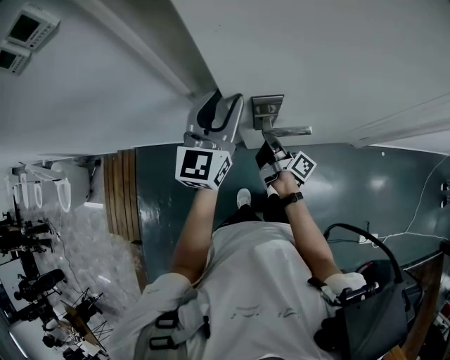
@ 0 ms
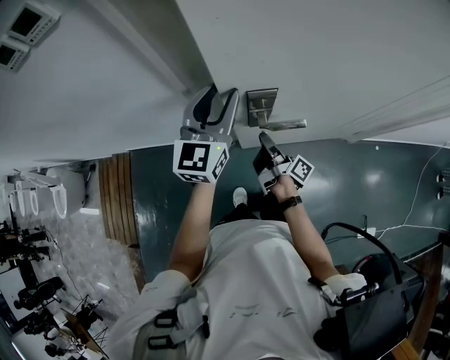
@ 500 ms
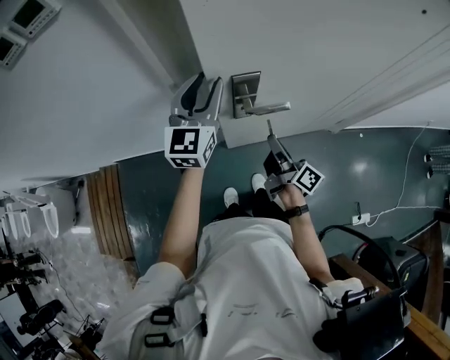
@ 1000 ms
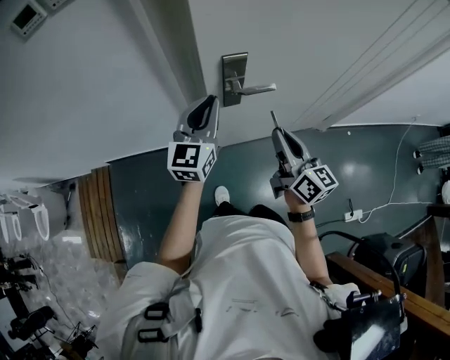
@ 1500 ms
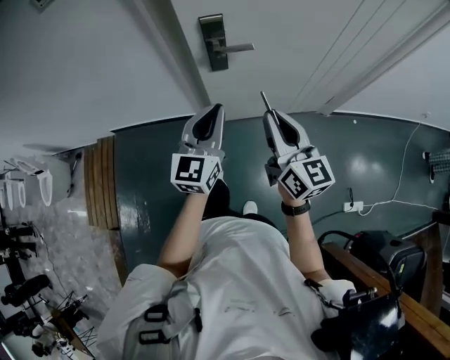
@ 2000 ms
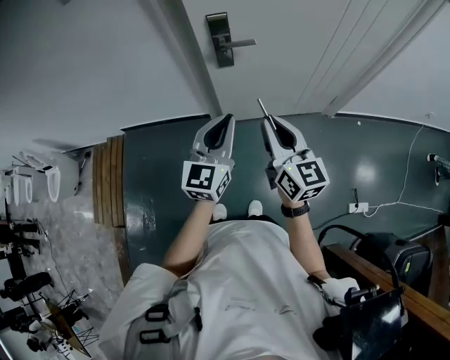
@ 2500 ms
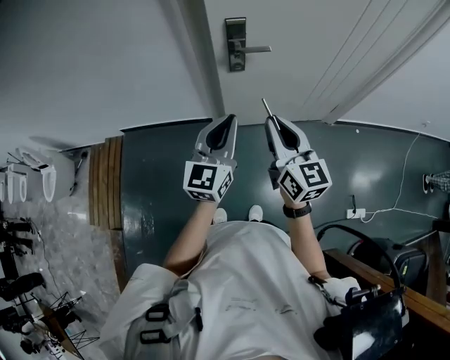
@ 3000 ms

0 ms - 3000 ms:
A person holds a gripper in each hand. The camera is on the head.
0 ms - 1500 ms: The right gripper heads upward and backward, covering about 25 cm, and twists some 60 degrees counterclockwise, seen from behind. The left gripper goes about 10 cm backward, and closes its fingers.
1500 ms - 3000 ms: The grippers both shift backward by roughly 20 cm.

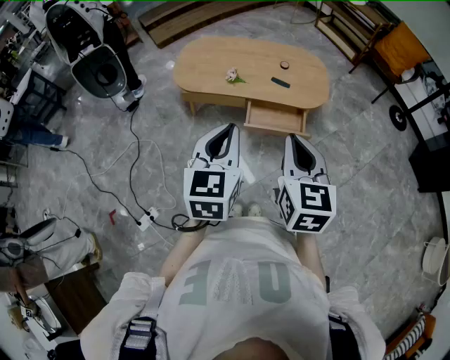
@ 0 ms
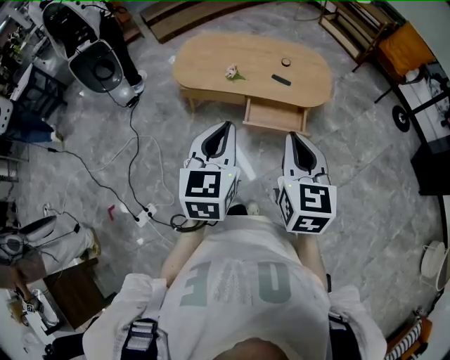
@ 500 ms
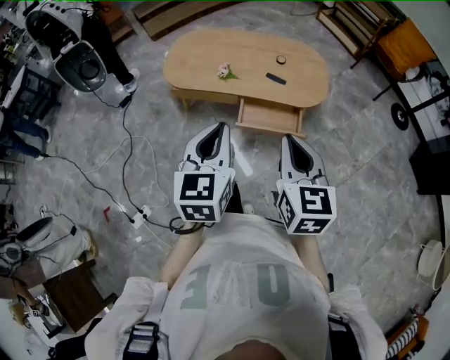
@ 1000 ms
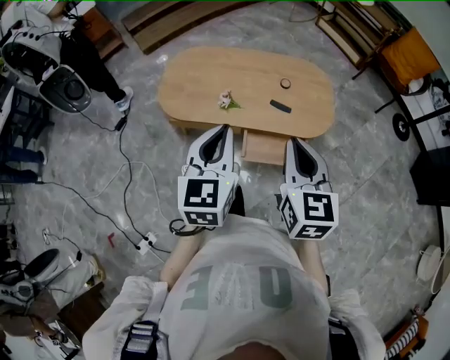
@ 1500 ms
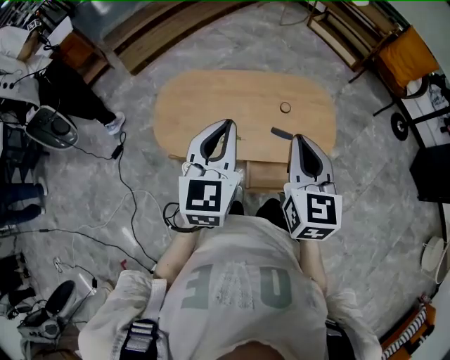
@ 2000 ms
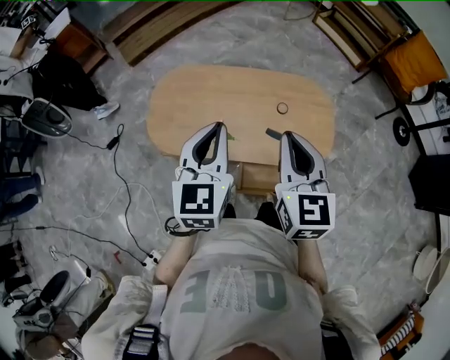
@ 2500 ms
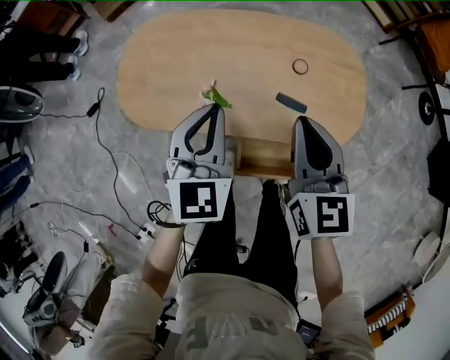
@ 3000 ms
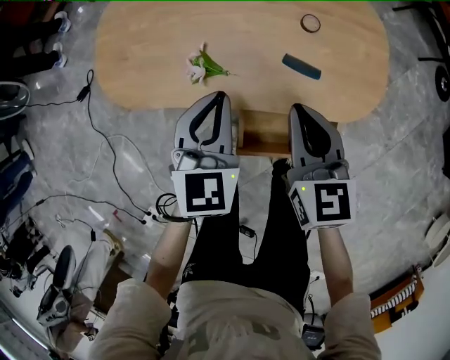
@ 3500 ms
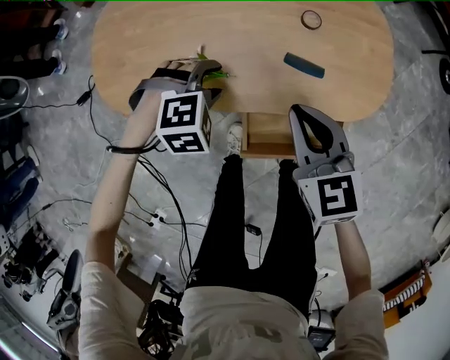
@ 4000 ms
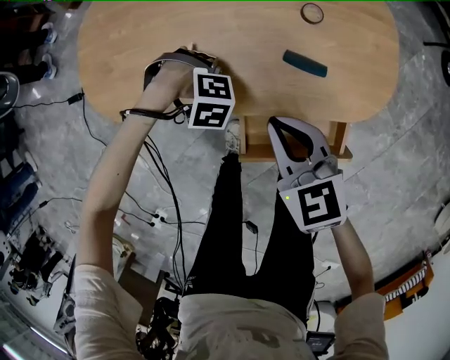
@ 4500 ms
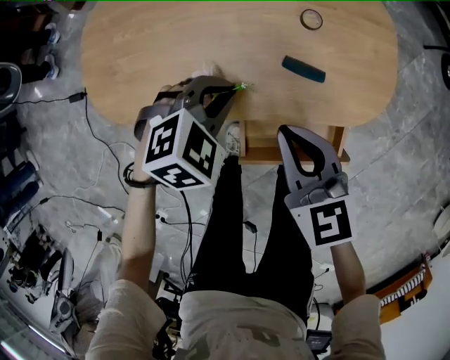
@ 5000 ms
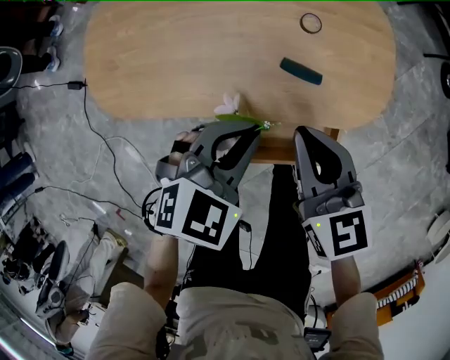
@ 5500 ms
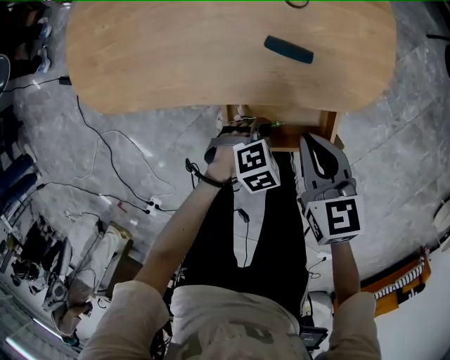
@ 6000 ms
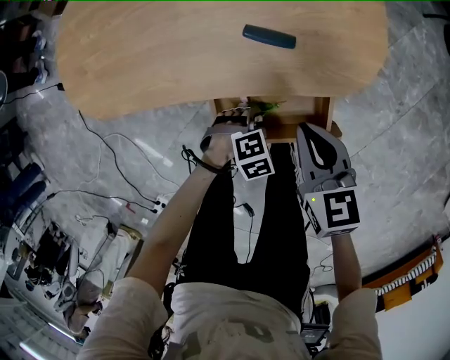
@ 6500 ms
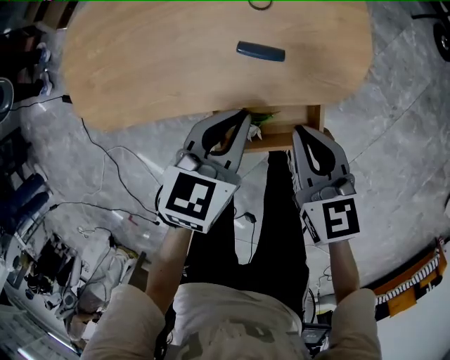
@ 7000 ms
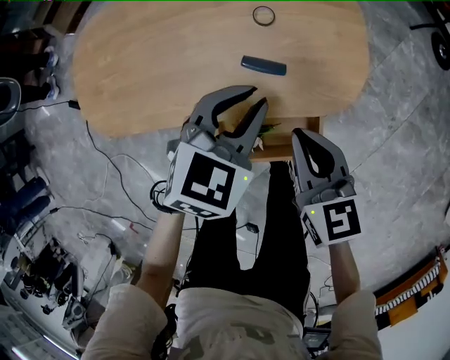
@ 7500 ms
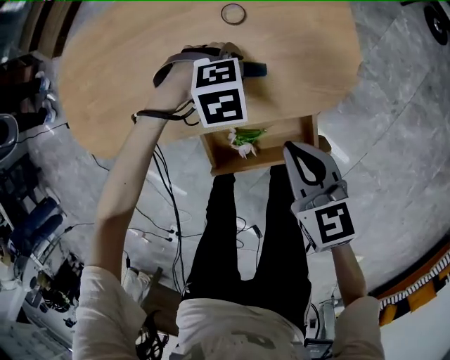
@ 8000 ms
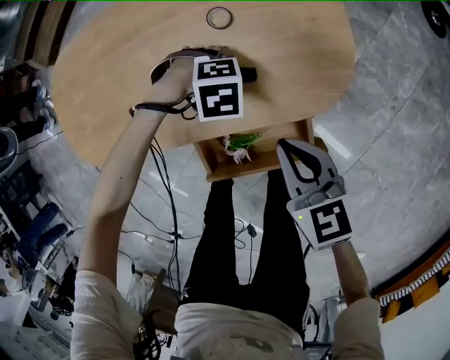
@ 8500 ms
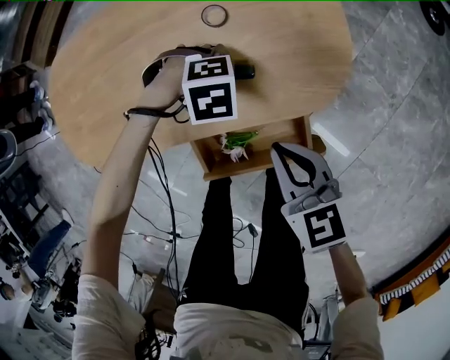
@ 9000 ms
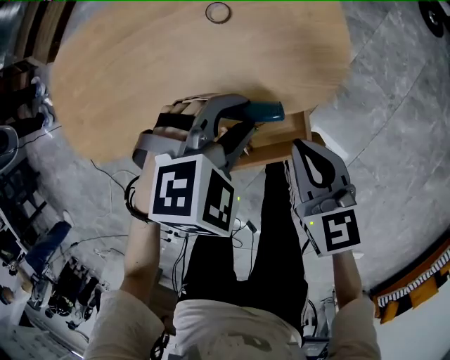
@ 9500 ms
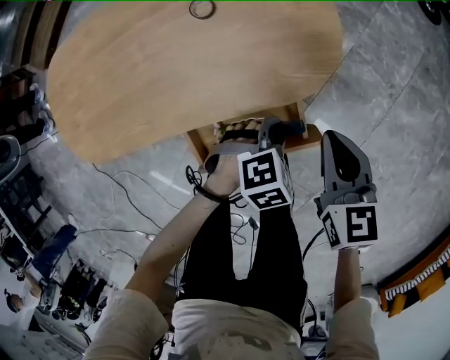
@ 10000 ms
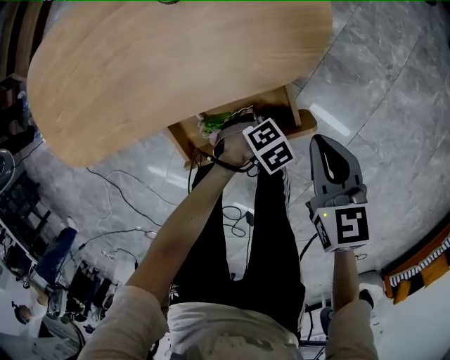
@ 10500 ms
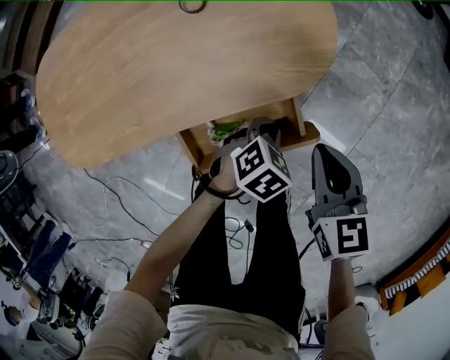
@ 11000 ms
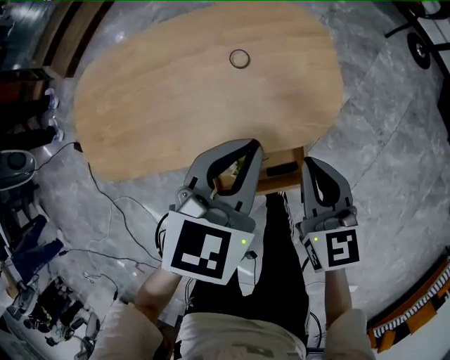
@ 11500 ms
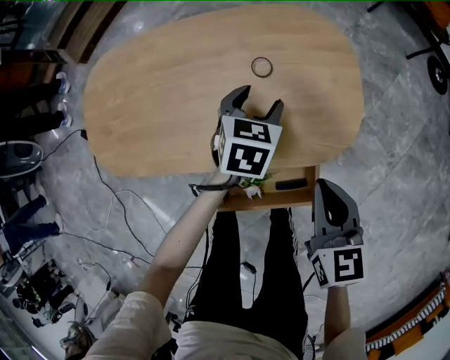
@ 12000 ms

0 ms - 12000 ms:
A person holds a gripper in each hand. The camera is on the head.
0 ms - 2000 ms: The two grippers travel together, forward, some 40 cm.
2000 ms - 4000 ms: The two grippers go roughly 40 cm downward. The left gripper angles its fingers downward, by roughly 60 degrees, and opens. Meanwhile the right gripper rotates some 30 degrees.
4000 ms - 6000 ms: The right gripper moves up and down over approximately 10 cm, changing direction 2 times. The left gripper goes up and down, approximately 25 cm each way, reversing 2 times, turns by approximately 30 degrees, and closes up.
6000 ms - 8000 ms: The left gripper moves up and down over roughly 25 cm, changing direction 2 times, changes its angle by roughly 30 degrees, and opens up; the right gripper goes upward and returns, approximately 5 cm each way.
8000 ms - 10000 ms: The left gripper moves up and down over roughly 15 cm, changing direction 2 times, while the right gripper changes place by about 10 cm.
10000 ms - 12000 ms: The left gripper moves up and down over about 40 cm, changing direction 2 times, swivels approximately 60 degrees, and opens its fingers. The right gripper changes place by some 10 cm.

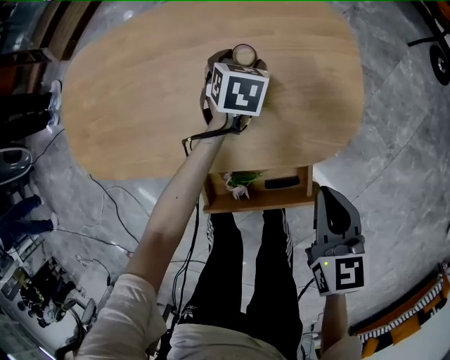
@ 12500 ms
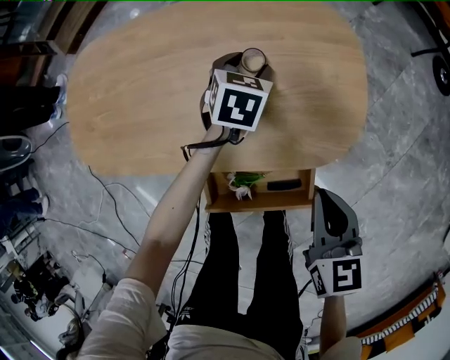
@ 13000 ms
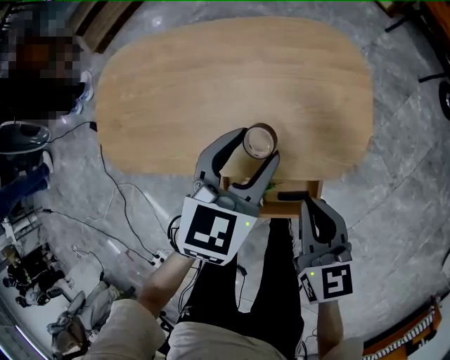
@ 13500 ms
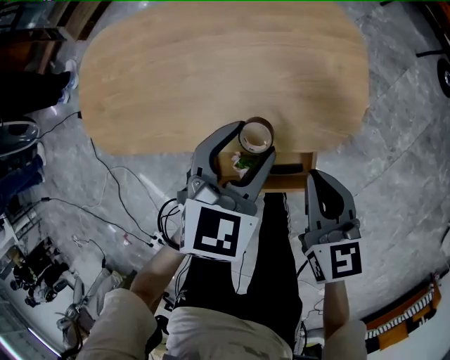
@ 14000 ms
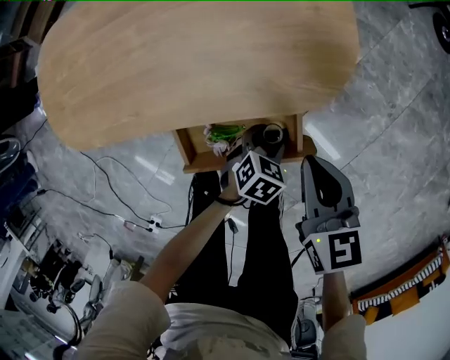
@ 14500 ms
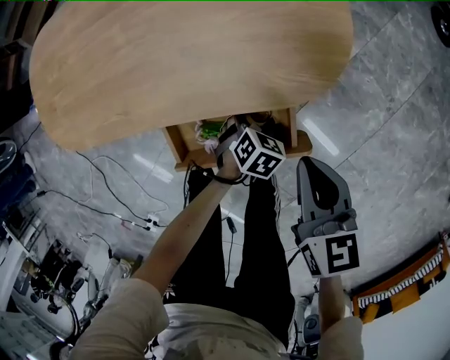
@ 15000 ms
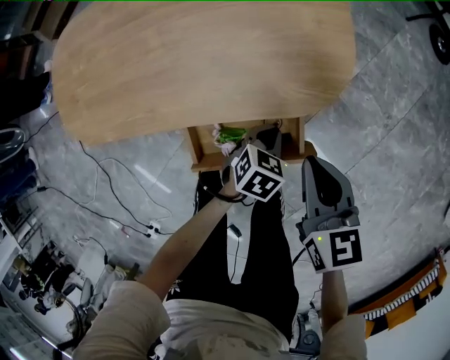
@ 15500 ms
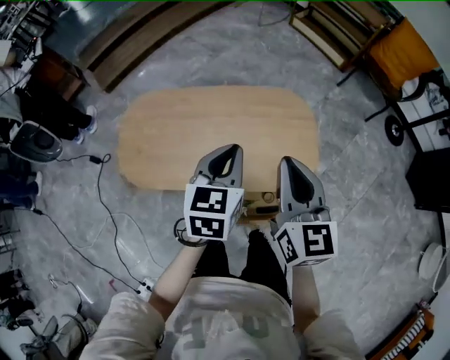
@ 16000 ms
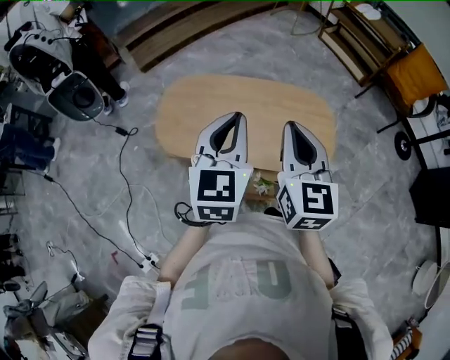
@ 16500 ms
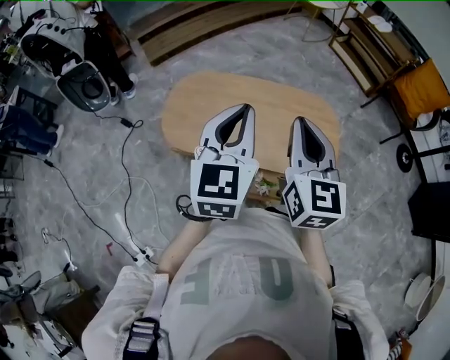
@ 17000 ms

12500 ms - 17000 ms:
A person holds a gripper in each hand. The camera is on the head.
12500 ms - 14500 ms: The left gripper goes some 35 cm backward, and turns by some 30 degrees. The right gripper reaches about 5 cm to the left, then returns.
14500 ms - 17000 ms: The grippers both shift upward by about 60 cm. The left gripper points its fingers some 50 degrees further upward, and closes, while the right gripper angles its fingers upward, by approximately 30 degrees.

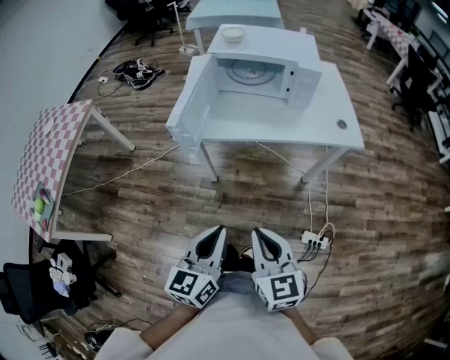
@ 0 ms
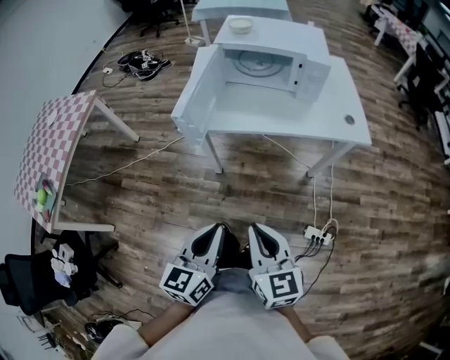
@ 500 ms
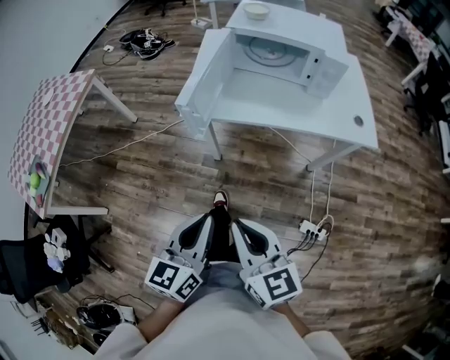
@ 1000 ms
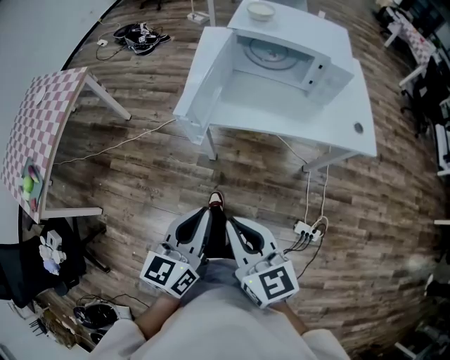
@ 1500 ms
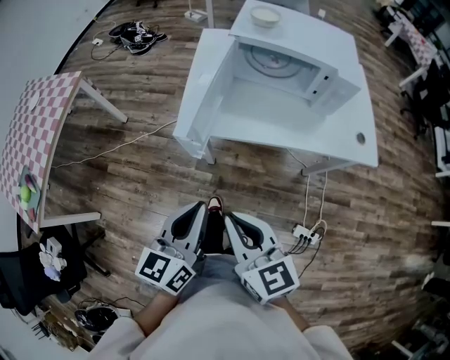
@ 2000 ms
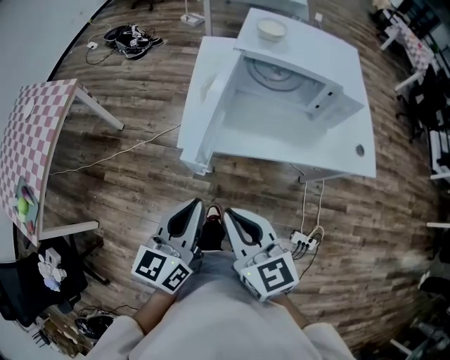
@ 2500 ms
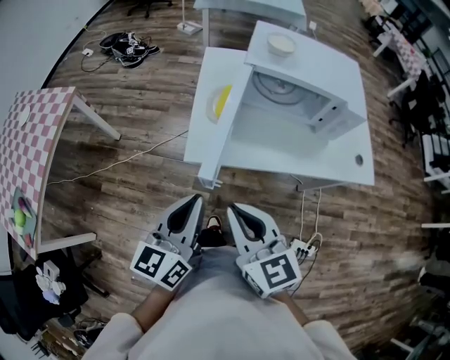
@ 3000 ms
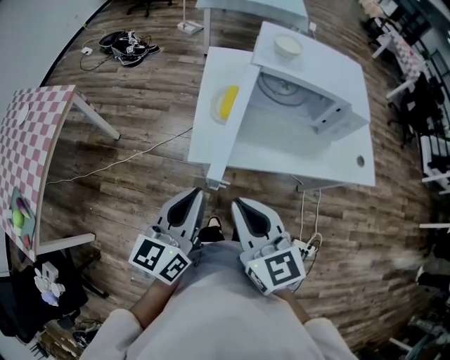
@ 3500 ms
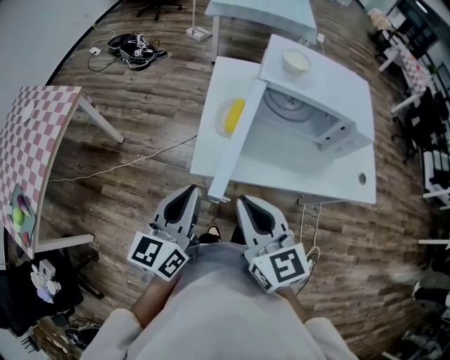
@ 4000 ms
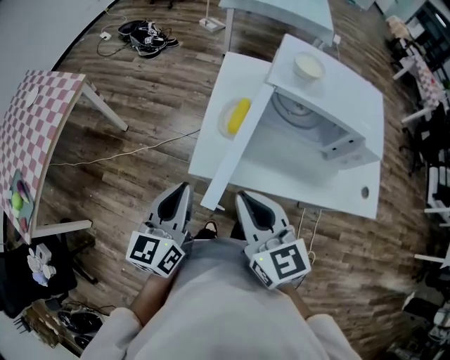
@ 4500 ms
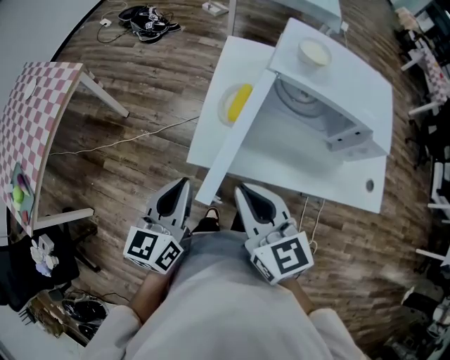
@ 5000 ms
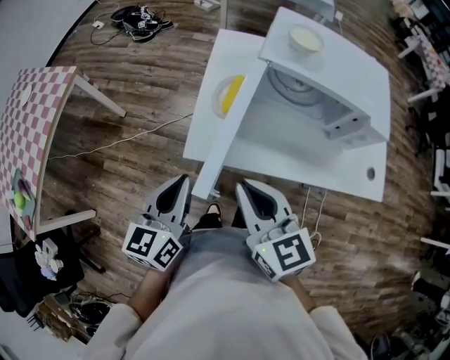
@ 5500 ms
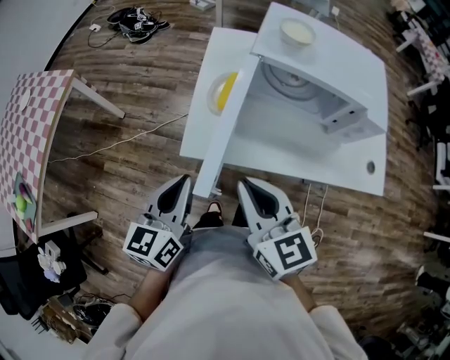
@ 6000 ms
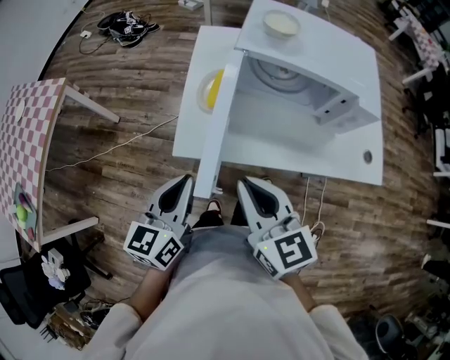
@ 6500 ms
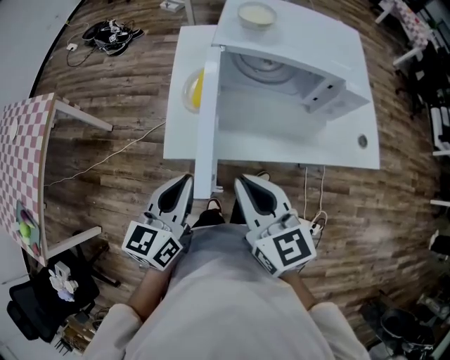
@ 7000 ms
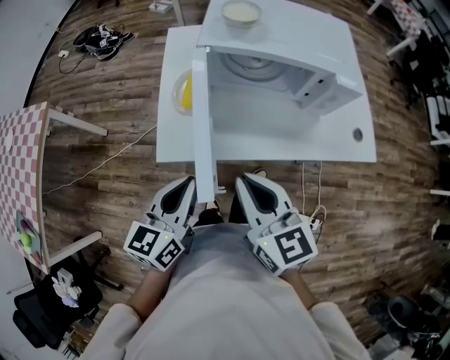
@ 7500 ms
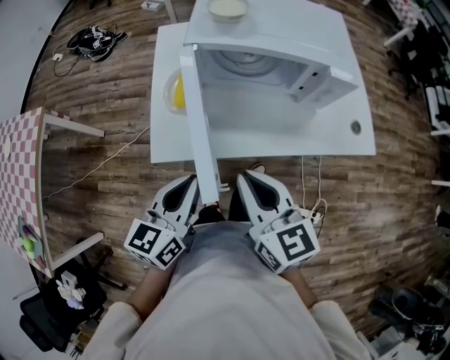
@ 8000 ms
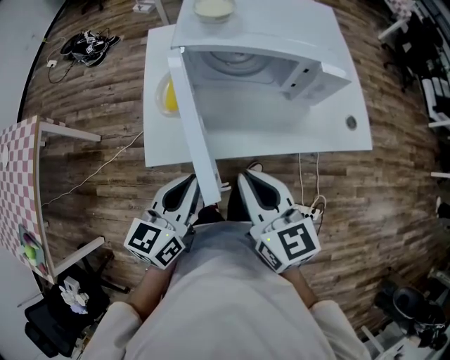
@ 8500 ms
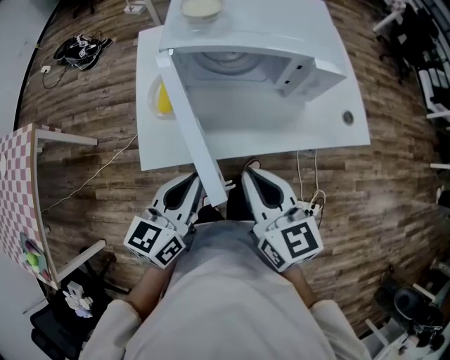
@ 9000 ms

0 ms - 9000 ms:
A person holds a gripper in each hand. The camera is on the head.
0 ms - 2000 ms: Both grippers travel together forward and to the left, roughly 15 cm.
2000 ms - 4500 ms: The left gripper shifts roughly 20 cm forward and to the left, while the right gripper moves forward, approximately 20 cm.
4500 ms - 7000 ms: The grippers both shift to the right by roughly 10 cm.
7000 ms - 9000 ms: The grippers both shift to the right by approximately 10 cm.
